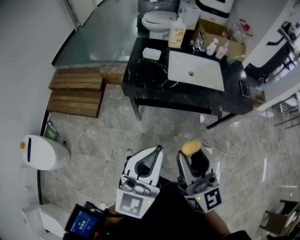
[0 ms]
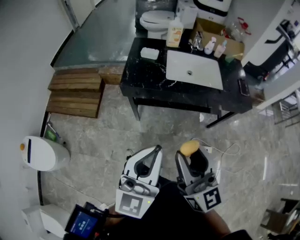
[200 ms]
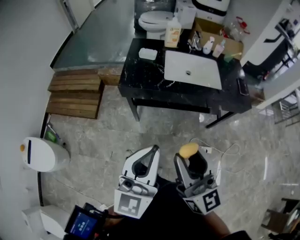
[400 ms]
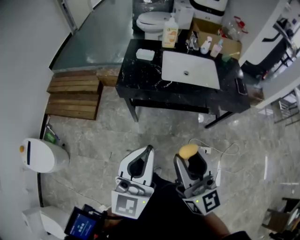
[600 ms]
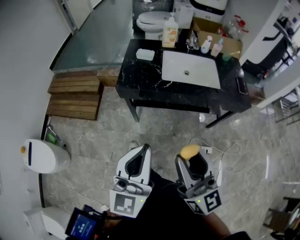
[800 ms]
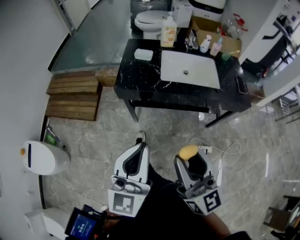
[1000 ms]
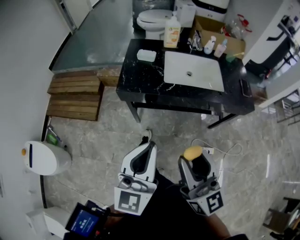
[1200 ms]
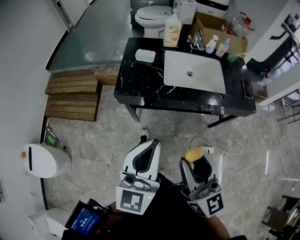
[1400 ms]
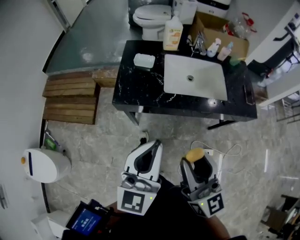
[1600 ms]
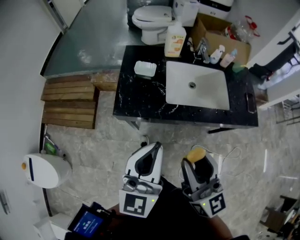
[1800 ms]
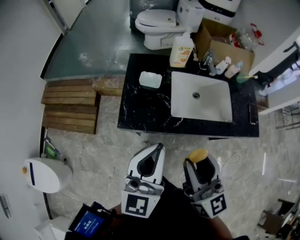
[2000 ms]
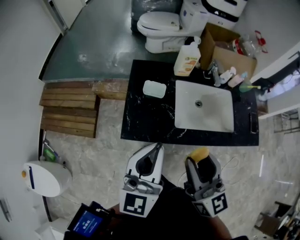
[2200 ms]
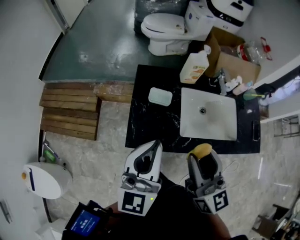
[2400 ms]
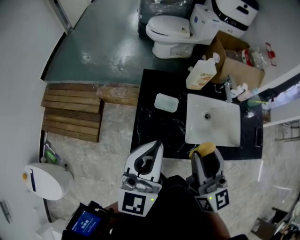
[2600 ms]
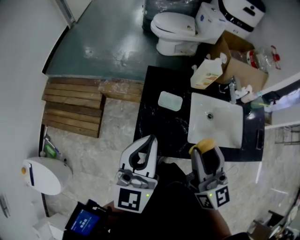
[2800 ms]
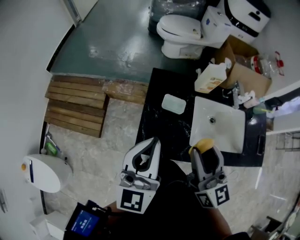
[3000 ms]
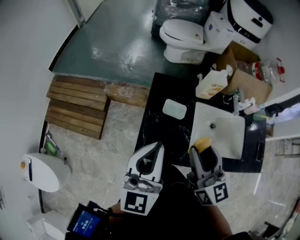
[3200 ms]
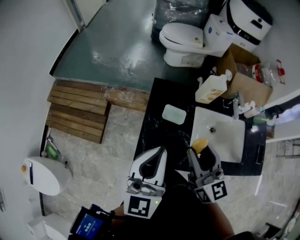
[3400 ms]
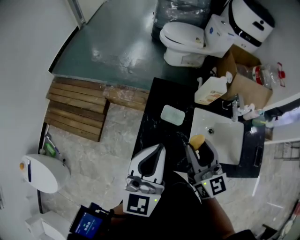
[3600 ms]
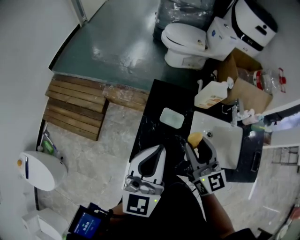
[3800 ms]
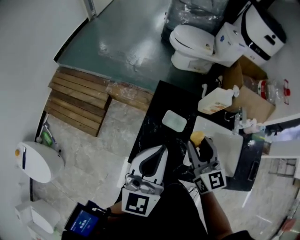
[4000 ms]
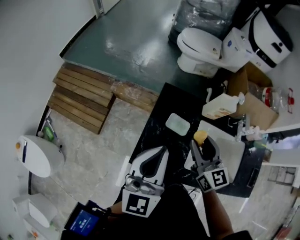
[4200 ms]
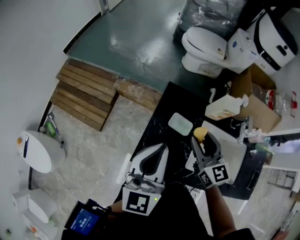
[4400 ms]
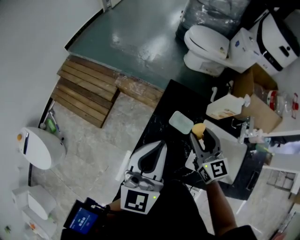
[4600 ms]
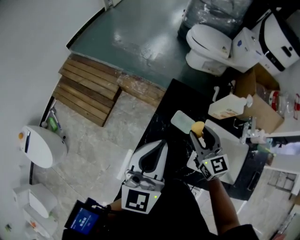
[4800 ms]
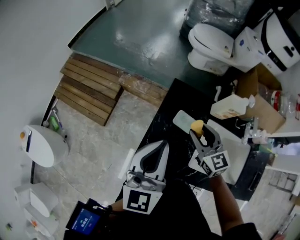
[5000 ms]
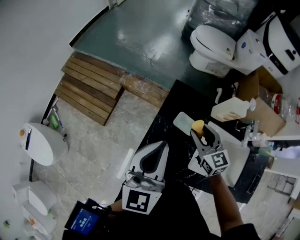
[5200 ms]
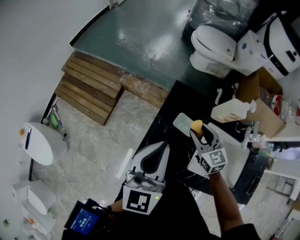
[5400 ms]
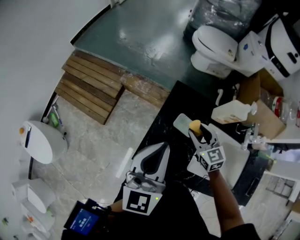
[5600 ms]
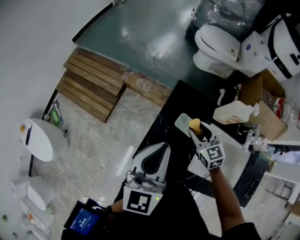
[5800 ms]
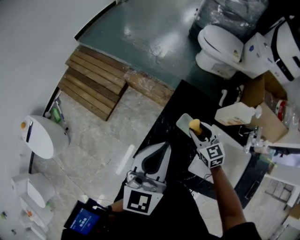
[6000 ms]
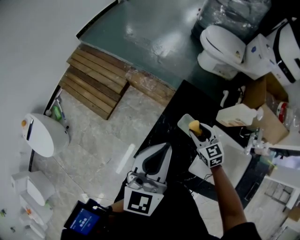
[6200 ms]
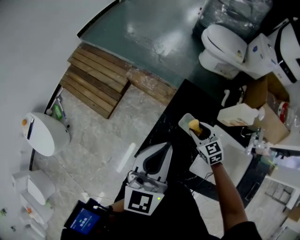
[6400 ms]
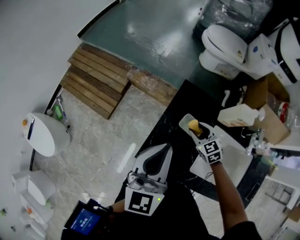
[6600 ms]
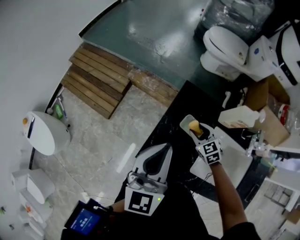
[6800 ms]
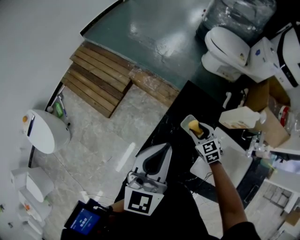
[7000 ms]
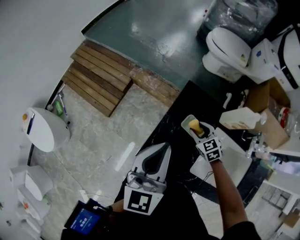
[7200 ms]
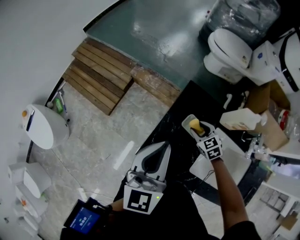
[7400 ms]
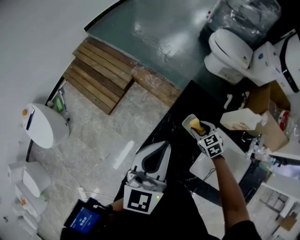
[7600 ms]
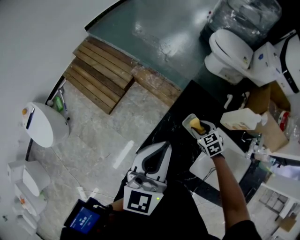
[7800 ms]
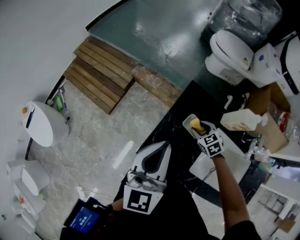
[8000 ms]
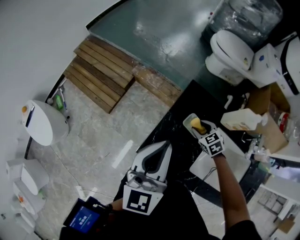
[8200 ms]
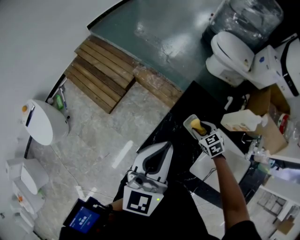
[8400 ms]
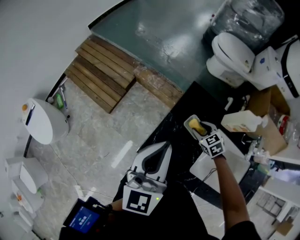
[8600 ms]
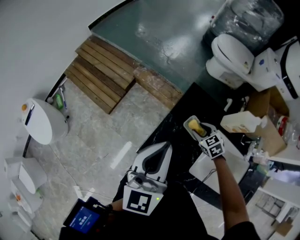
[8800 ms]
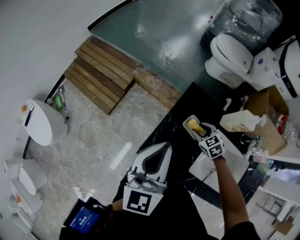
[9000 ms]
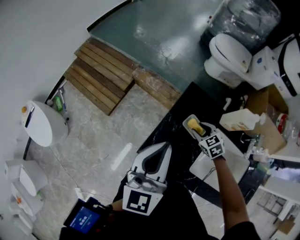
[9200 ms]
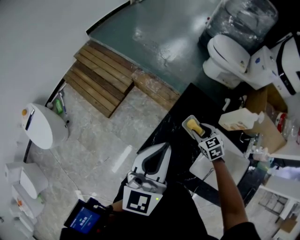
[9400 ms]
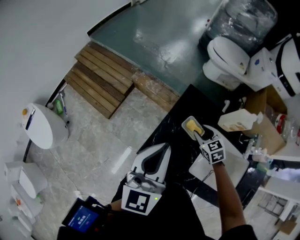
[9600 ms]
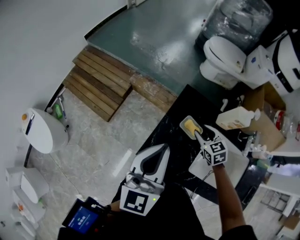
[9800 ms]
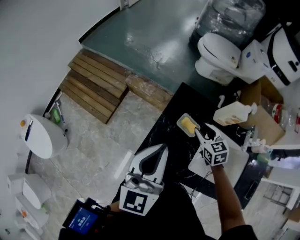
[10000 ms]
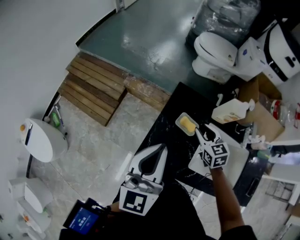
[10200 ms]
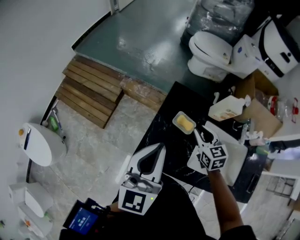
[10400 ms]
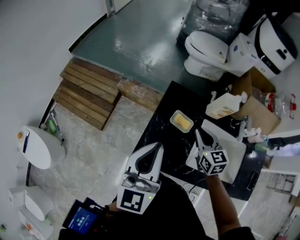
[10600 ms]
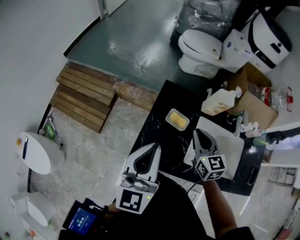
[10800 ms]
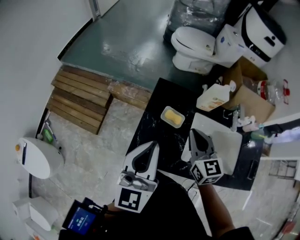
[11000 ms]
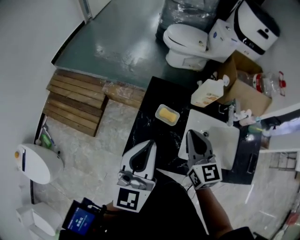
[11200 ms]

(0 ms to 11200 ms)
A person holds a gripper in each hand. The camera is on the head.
0 ms - 1600 ms: The two grippers go approximately 15 cm forward.
1600 ms - 3200 ms: The left gripper is displaced forward and to the left by approximately 35 cm. Meanwhile the right gripper is displaced forward by about 35 cm.
3200 ms - 4800 ms: The right gripper shifts some 20 cm forward and downward, and changes its angle by roughly 30 degrees; the left gripper is displaced forward by some 5 cm.
4800 ms - 6400 ms: The right gripper moves downward, approximately 15 cm, and turns by about 30 degrees.
6400 ms - 8000 ms: The grippers move only a little.
8000 ms - 9600 ms: The right gripper moves upward, roughly 5 cm.
9600 ms - 11200 ms: The left gripper moves some 5 cm; the right gripper travels upward and backward by some 20 cm, tips its fingers upward by some 30 degrees, and closes its fingers.

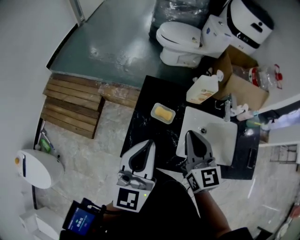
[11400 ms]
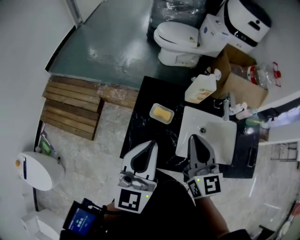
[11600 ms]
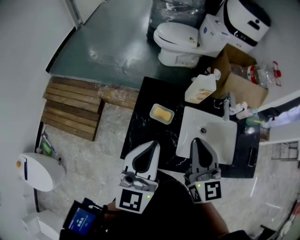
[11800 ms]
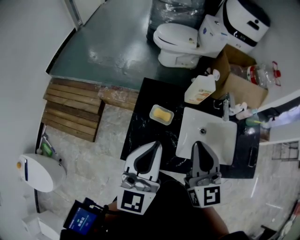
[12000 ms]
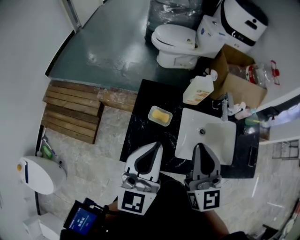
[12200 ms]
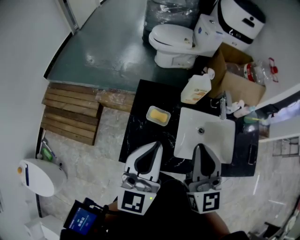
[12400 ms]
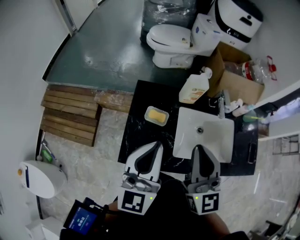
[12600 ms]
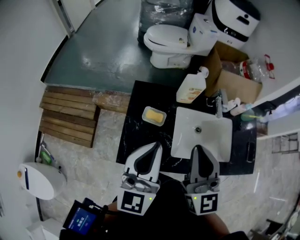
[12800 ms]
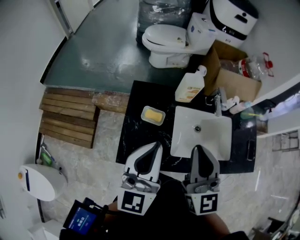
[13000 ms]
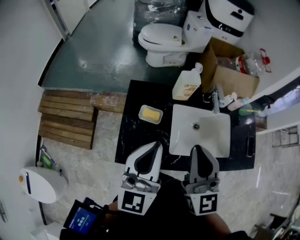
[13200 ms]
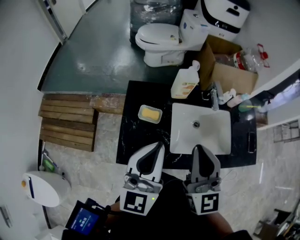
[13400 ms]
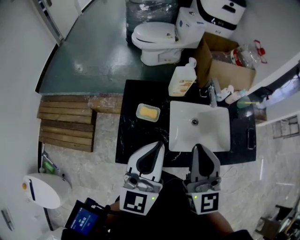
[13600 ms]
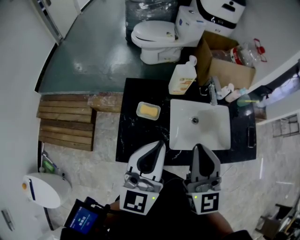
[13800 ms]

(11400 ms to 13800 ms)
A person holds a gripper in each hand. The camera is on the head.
11400 ms - 12600 ms: The left gripper moves roughly 5 cm, while the right gripper moves upward and backward, some 10 cm.
12600 ms - 13800 ms: The grippers move only a little.

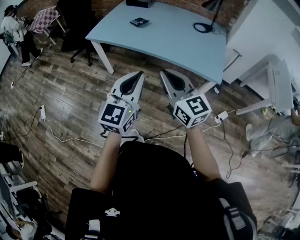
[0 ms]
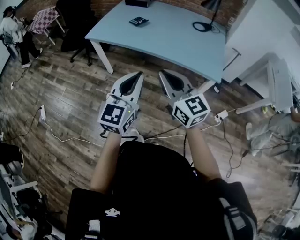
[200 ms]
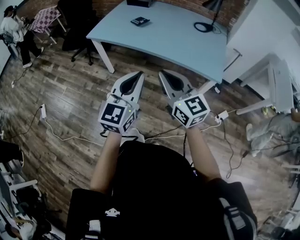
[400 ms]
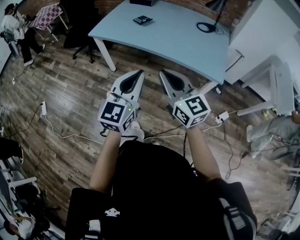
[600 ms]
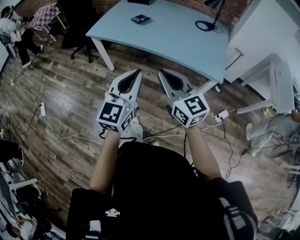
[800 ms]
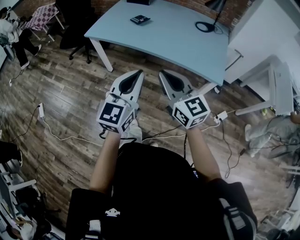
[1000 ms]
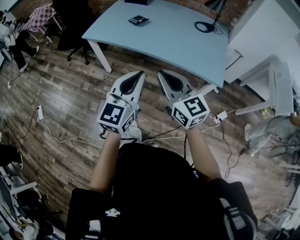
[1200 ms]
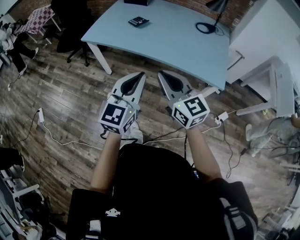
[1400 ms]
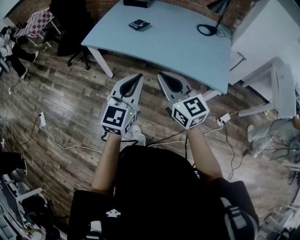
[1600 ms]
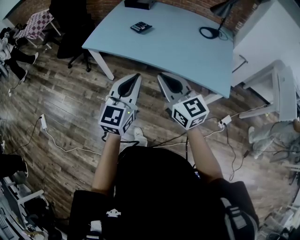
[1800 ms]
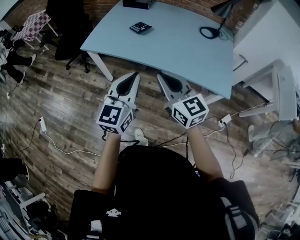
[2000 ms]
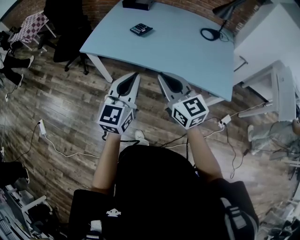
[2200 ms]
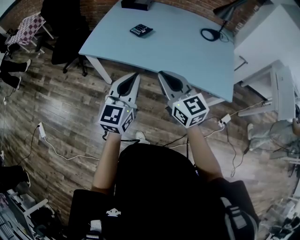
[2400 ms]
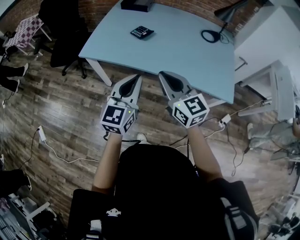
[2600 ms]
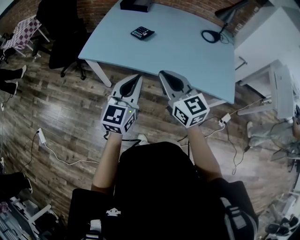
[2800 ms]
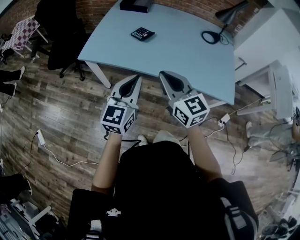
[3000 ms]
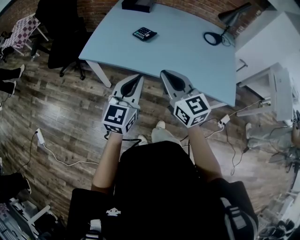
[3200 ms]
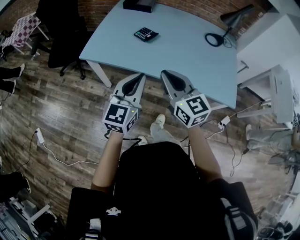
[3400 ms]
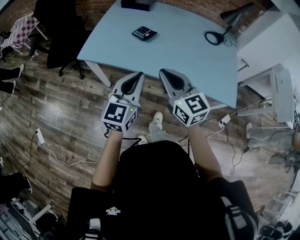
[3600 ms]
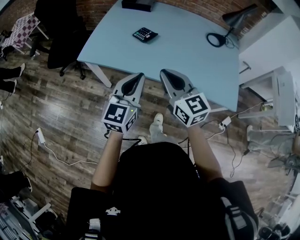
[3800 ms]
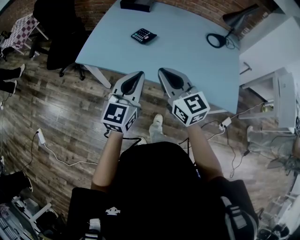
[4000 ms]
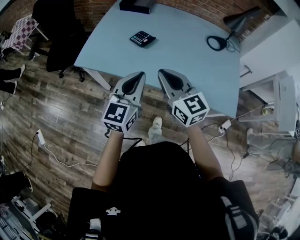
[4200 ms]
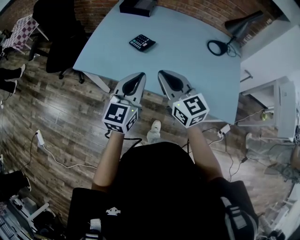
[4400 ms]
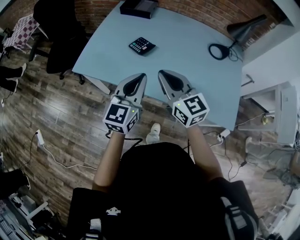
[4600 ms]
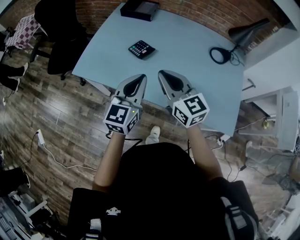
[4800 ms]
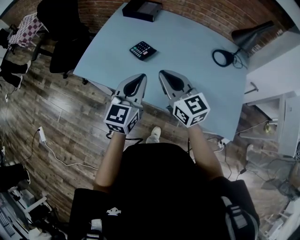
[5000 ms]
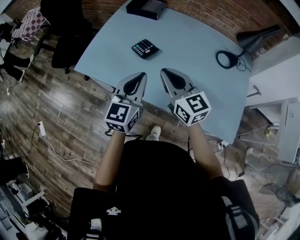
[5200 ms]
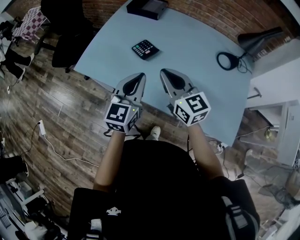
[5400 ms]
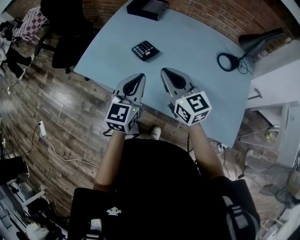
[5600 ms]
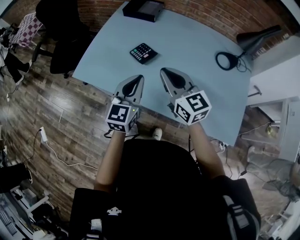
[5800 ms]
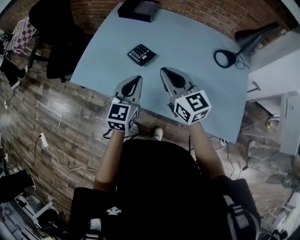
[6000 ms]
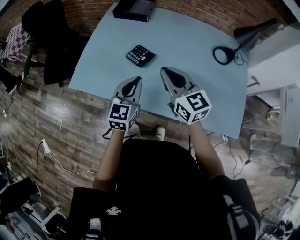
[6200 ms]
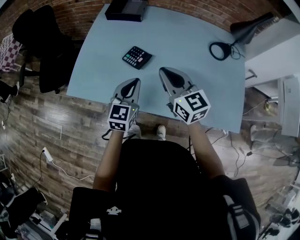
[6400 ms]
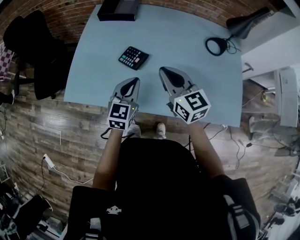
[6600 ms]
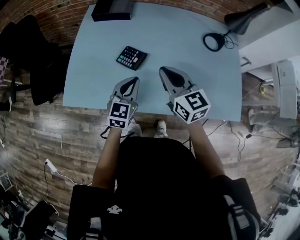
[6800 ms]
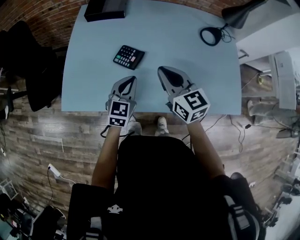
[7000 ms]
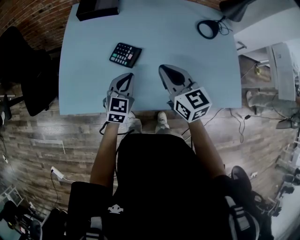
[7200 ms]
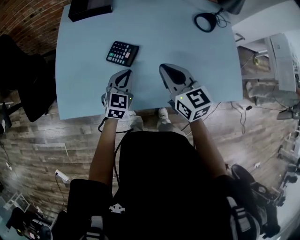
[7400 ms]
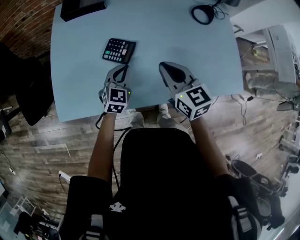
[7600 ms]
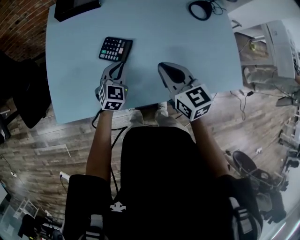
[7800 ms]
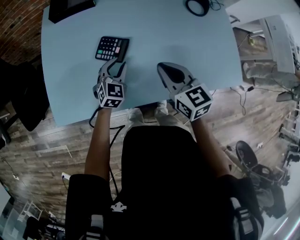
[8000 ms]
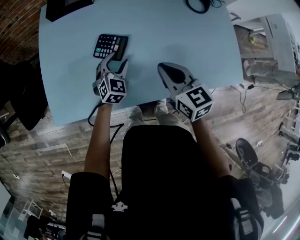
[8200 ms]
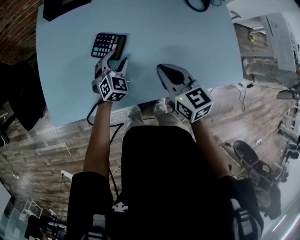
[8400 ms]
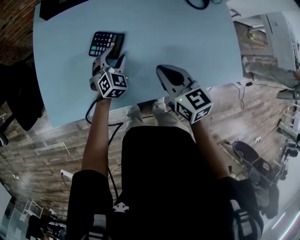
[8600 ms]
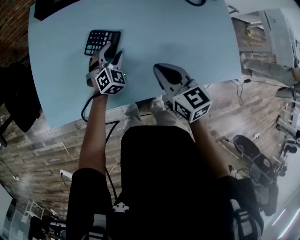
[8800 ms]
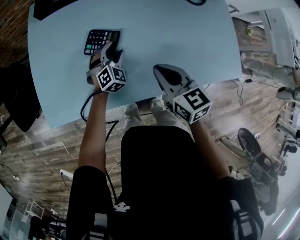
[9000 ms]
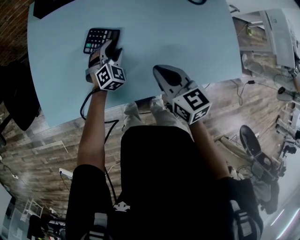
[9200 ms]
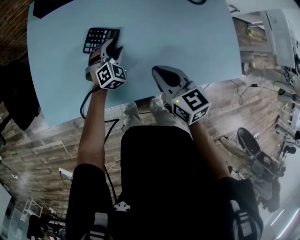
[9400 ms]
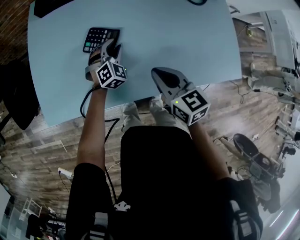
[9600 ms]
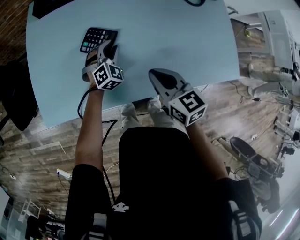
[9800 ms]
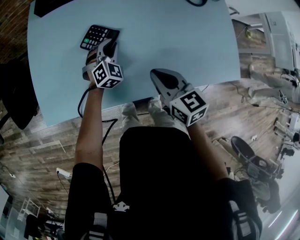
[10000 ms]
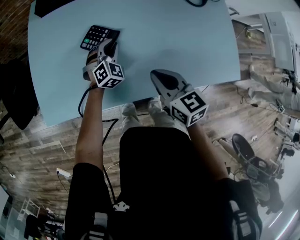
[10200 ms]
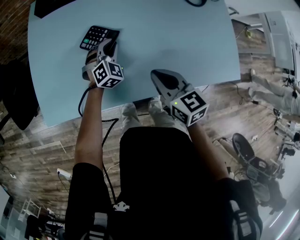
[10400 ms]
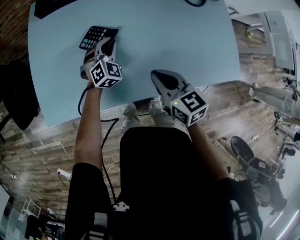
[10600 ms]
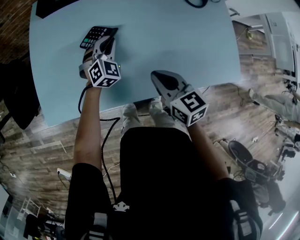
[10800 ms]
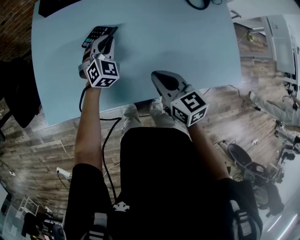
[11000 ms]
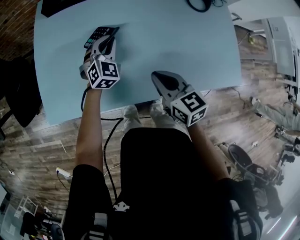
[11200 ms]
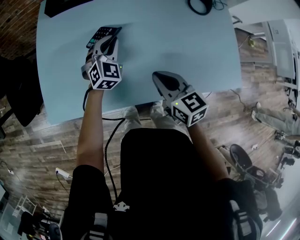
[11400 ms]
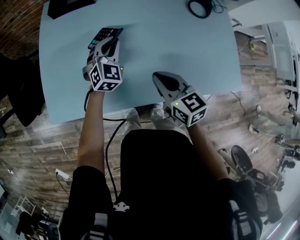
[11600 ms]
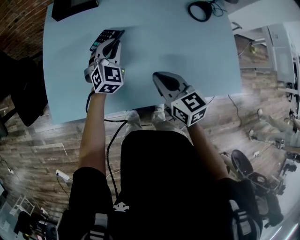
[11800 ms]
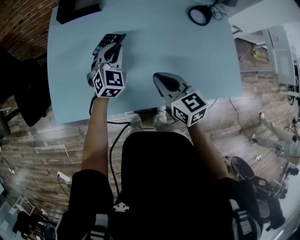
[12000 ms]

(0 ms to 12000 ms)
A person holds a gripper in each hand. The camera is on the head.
0 ms - 1600 ms: Both grippers travel together forward, approximately 10 cm.
1600 ms - 3000 ms: Both grippers move forward and to the left, roughly 15 cm.
3000 ms - 4400 ms: The two grippers go approximately 10 cm forward.
4400 ms - 6000 ms: The left gripper is displaced forward and downward by about 15 cm; the right gripper travels forward by approximately 15 cm.
6000 ms - 7600 ms: The left gripper shifts about 15 cm downward, and turns by roughly 30 degrees. Meanwhile the right gripper shifts approximately 10 cm downward, and rotates roughly 30 degrees.
7600 ms - 9000 ms: The left gripper moves downward and forward, some 10 cm, swivels approximately 30 degrees, and opens its fingers, while the right gripper shifts roughly 5 cm downward.
9000 ms - 10400 ms: The left gripper closes up.
10400 ms - 12000 ms: The left gripper goes approximately 15 cm upward.
